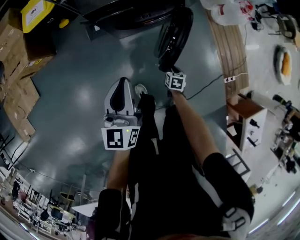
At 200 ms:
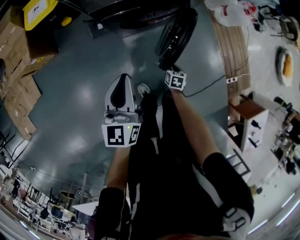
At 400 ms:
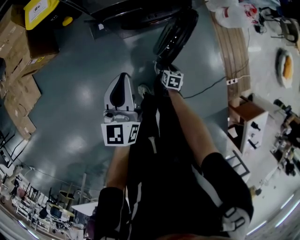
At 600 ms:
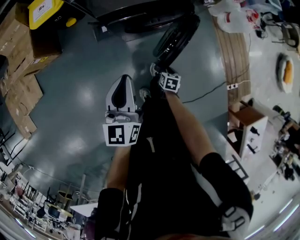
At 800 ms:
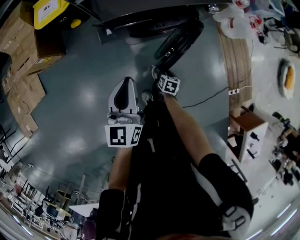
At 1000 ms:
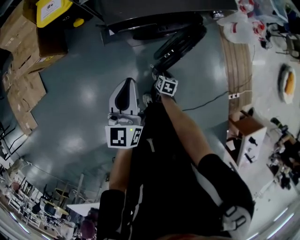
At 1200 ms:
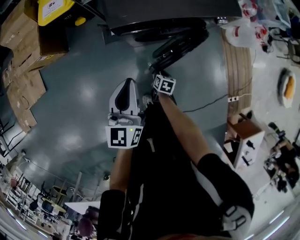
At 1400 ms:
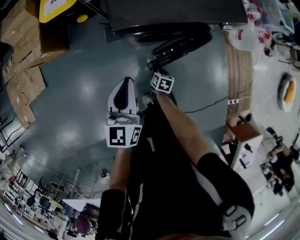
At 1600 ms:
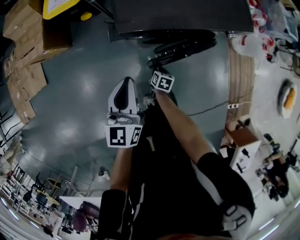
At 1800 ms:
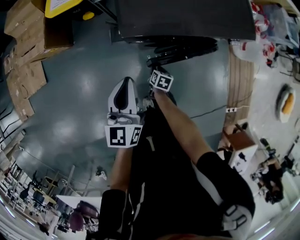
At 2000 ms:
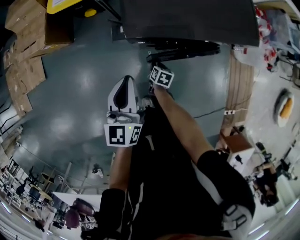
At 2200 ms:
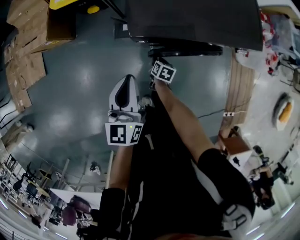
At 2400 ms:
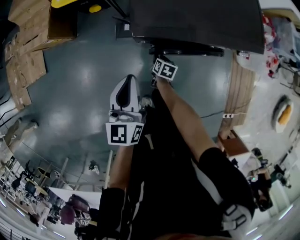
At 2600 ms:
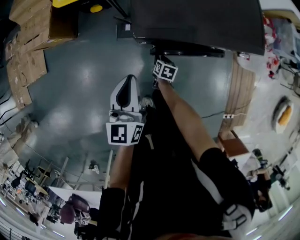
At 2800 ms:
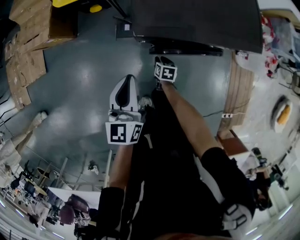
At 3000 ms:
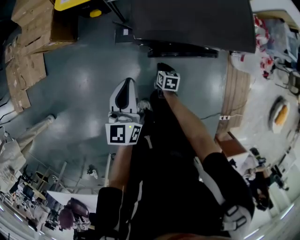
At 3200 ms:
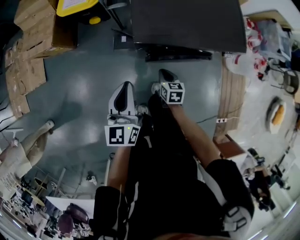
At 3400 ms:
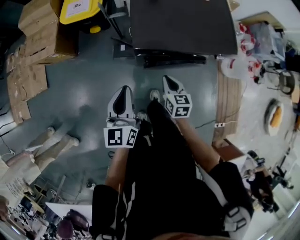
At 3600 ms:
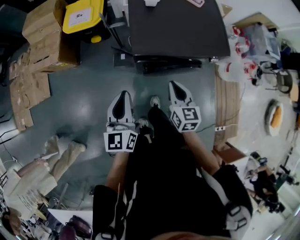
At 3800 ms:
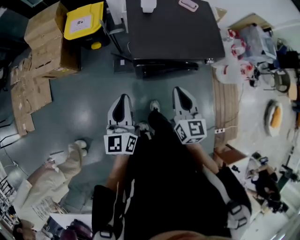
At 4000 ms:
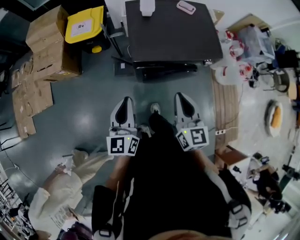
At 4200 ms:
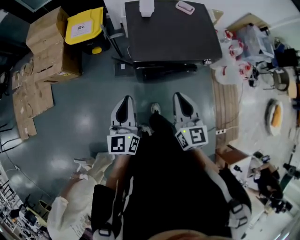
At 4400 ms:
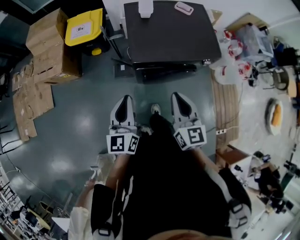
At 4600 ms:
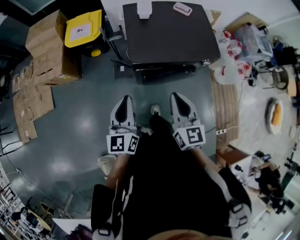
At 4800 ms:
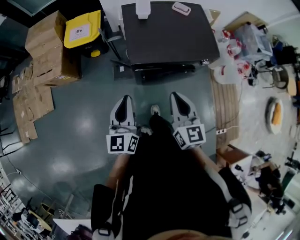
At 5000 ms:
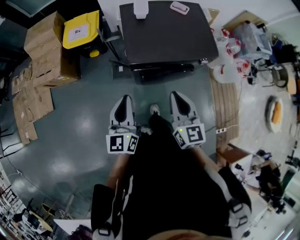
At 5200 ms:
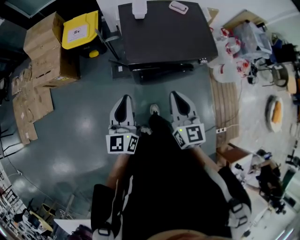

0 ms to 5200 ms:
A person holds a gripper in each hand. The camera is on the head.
0 ms to 1800 ms: The left gripper moves forward and to the left, roughly 20 cm, while the right gripper moves to the left and forward, approximately 30 cm.
1800 ms to 3400 ms: The right gripper moves upward, about 30 cm, rotates some 40 degrees, and closes its fingers, while the left gripper is displaced upward by some 5 cm.
3400 ms to 5200 ms: The right gripper is displaced upward by some 25 cm, and swivels approximately 30 degrees. Meanwhile the left gripper shifts about 10 cm upward.

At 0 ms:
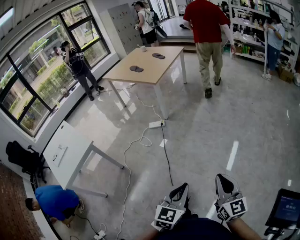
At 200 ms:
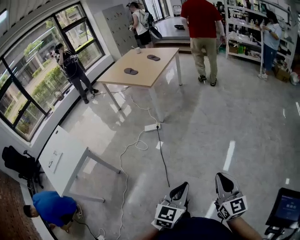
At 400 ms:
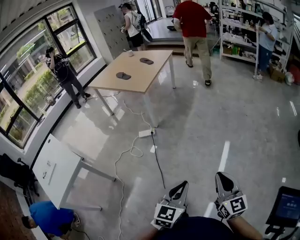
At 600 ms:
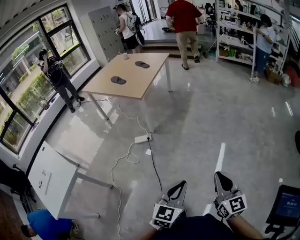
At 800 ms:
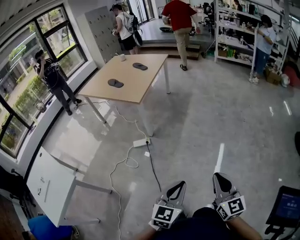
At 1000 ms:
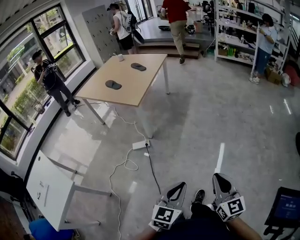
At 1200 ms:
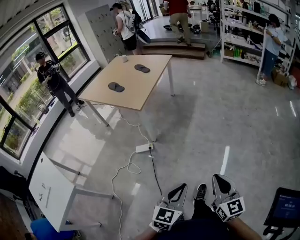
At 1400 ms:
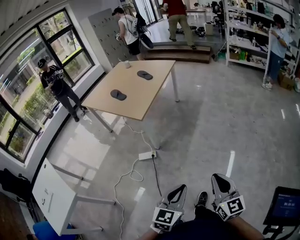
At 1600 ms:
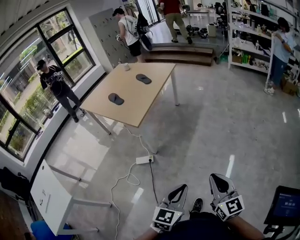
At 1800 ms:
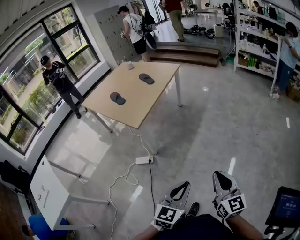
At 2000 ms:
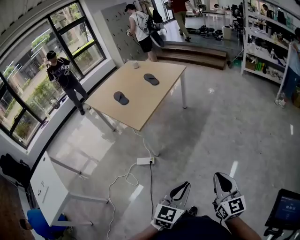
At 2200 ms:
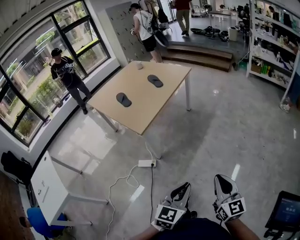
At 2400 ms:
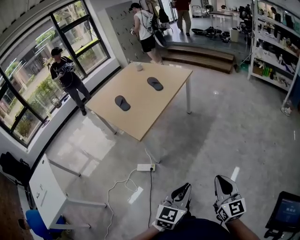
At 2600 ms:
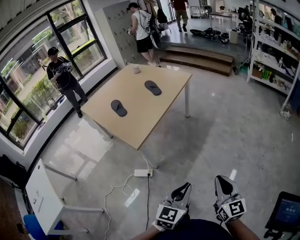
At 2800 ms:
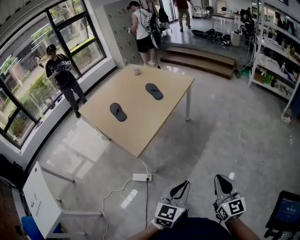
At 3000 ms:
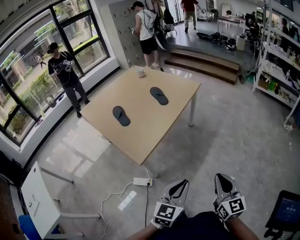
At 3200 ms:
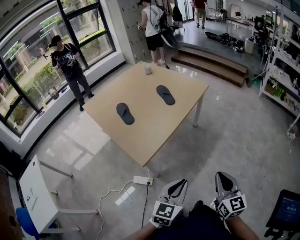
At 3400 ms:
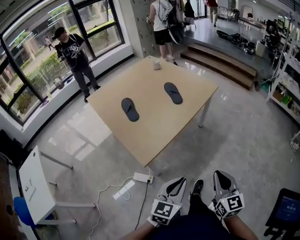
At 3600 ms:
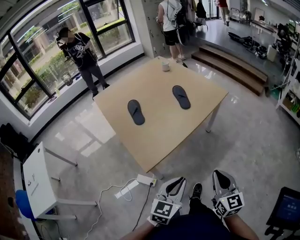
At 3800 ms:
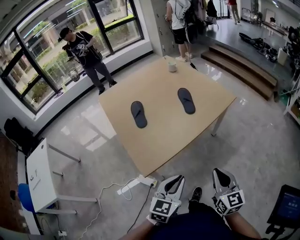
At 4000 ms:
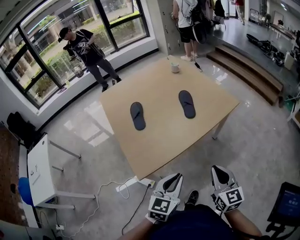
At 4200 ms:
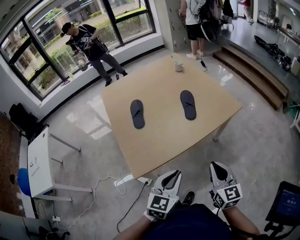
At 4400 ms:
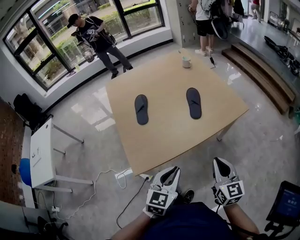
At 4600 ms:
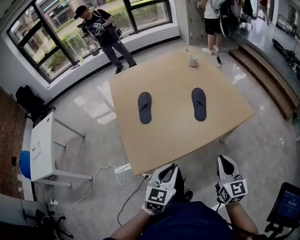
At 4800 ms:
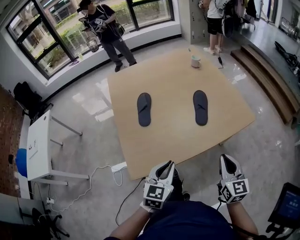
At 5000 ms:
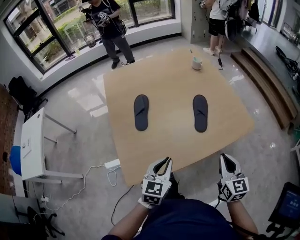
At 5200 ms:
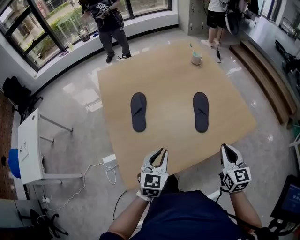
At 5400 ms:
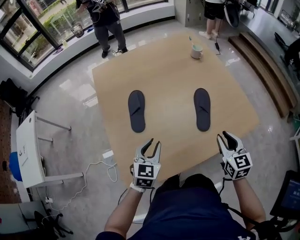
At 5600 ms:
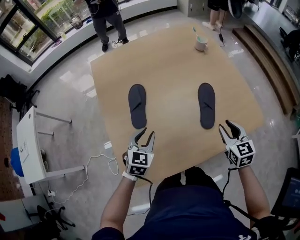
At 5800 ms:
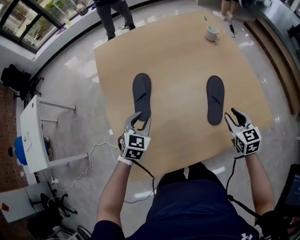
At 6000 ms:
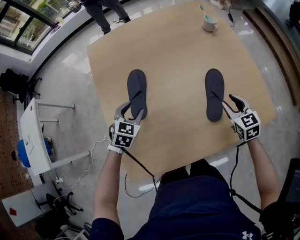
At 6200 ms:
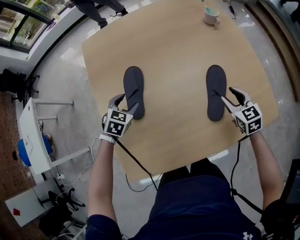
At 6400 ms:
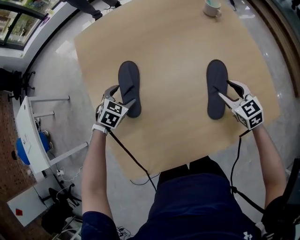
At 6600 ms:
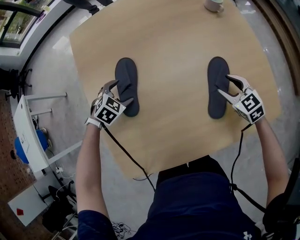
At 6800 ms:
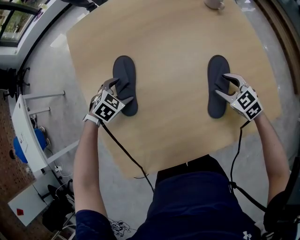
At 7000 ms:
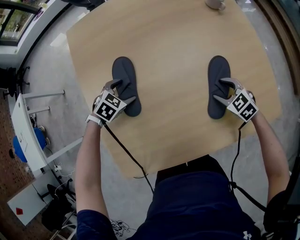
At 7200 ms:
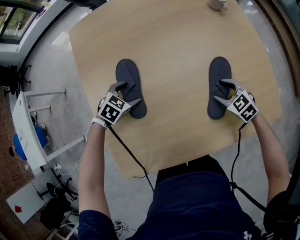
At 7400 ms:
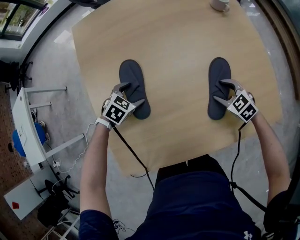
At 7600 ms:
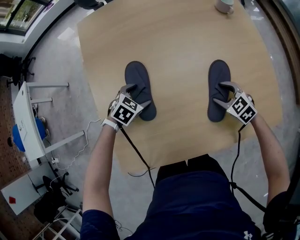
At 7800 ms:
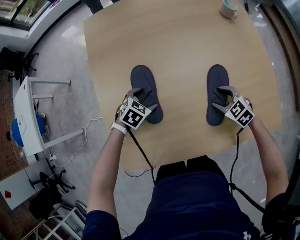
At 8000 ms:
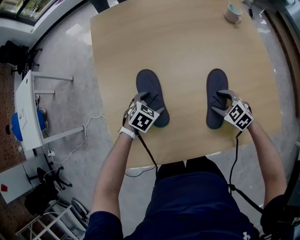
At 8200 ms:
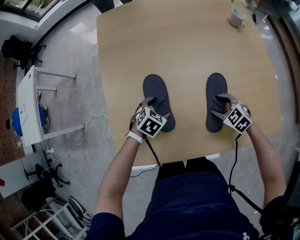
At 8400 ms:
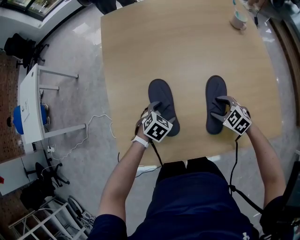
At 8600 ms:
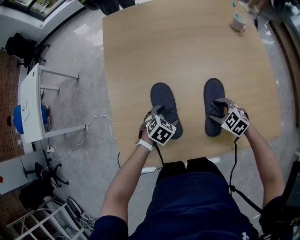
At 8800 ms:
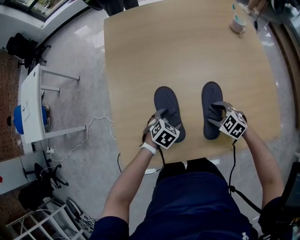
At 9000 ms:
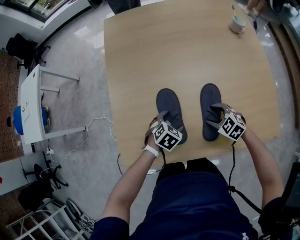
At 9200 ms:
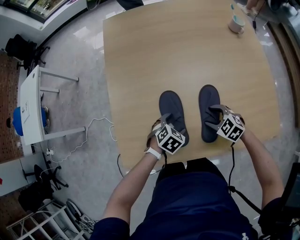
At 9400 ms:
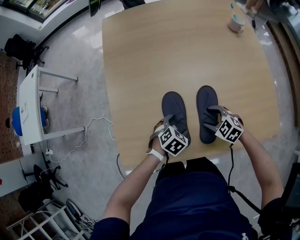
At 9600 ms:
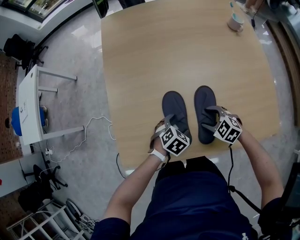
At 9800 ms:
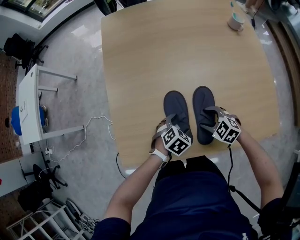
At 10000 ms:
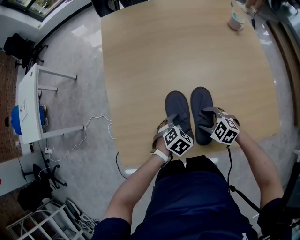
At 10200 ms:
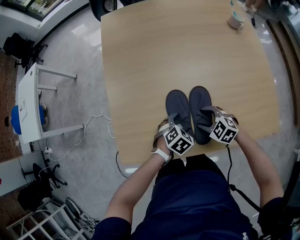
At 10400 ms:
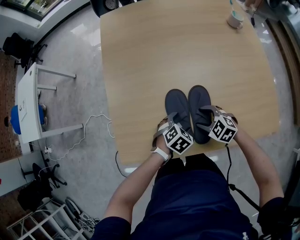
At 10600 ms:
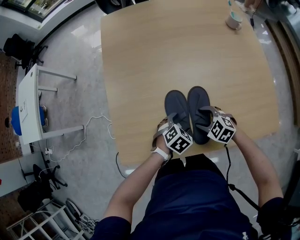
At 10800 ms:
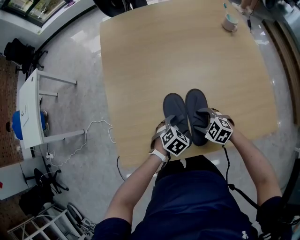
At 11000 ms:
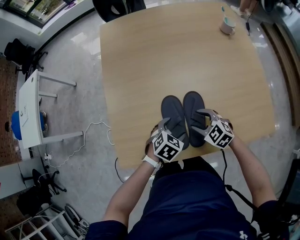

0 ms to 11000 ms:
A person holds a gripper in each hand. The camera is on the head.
0 ms to 1600 ms: Both grippers are carried forward, some 50 cm.
1600 ms to 3200 ms: Both grippers move forward, some 40 cm.
3200 ms to 4800 ms: The left gripper shifts by roughly 30 cm, and turns by roughly 40 degrees. The right gripper ends up about 40 cm from where it was, and rotates some 30 degrees.
4800 ms to 6200 ms: The left gripper goes approximately 40 cm forward, to the left and downward, points its fingers about 30 degrees further downward, and opens. The right gripper travels forward and downward by approximately 35 cm, swivels roughly 30 degrees, and opens its fingers.
6200 ms to 7800 ms: The left gripper goes roughly 10 cm downward, to the right and backward. Meanwhile the right gripper heads downward and to the left, covering roughly 10 cm, and changes its angle by roughly 40 degrees.
7800 ms to 9400 ms: The left gripper heads backward and to the right, covering about 15 cm; the right gripper travels to the left and backward by some 10 cm.
9400 ms to 11000 ms: The right gripper moves some 5 cm.

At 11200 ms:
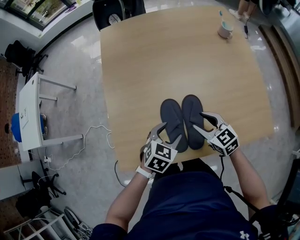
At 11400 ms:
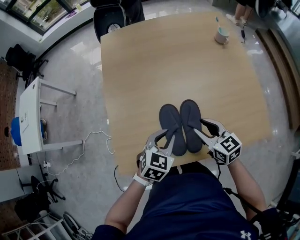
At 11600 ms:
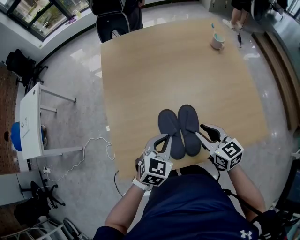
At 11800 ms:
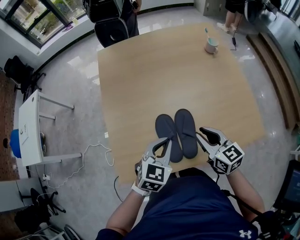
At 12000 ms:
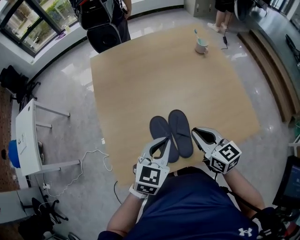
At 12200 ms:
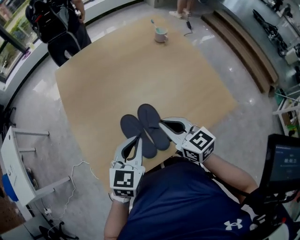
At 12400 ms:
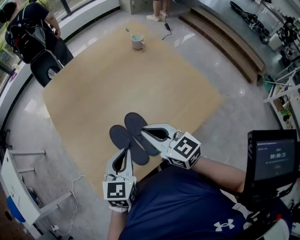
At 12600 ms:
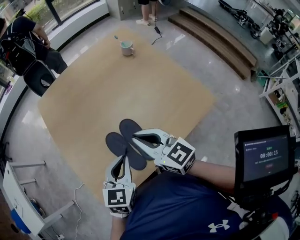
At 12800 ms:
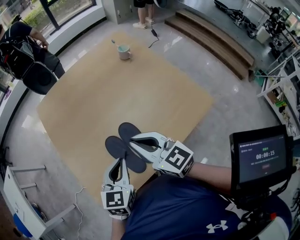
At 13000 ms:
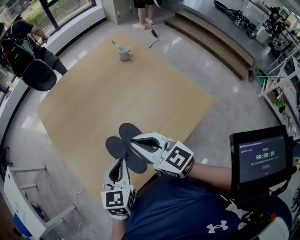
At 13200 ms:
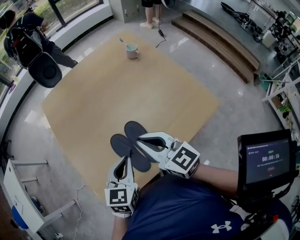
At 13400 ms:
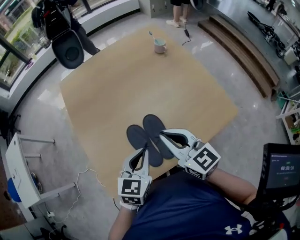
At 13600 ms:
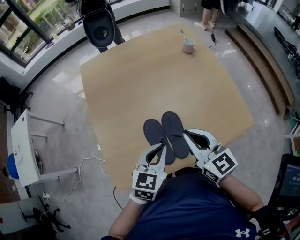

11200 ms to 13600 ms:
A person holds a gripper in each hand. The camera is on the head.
11200 ms to 12400 ms: Both grippers move upward, roughly 15 cm. The right gripper rotates approximately 30 degrees, and closes up; the left gripper closes its fingers.
12400 ms to 13600 ms: The right gripper moves approximately 5 cm.

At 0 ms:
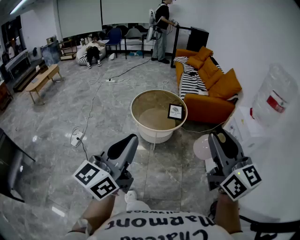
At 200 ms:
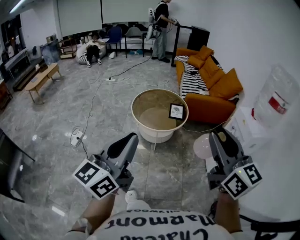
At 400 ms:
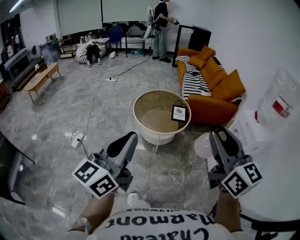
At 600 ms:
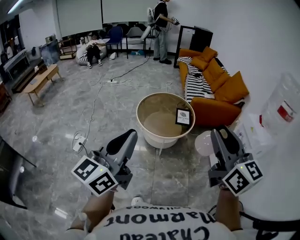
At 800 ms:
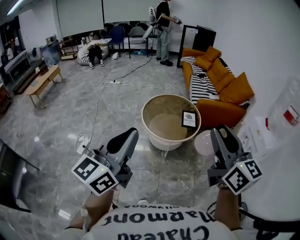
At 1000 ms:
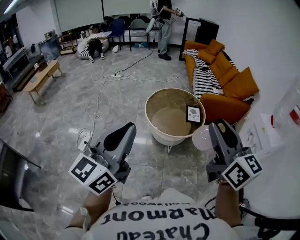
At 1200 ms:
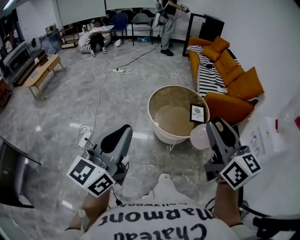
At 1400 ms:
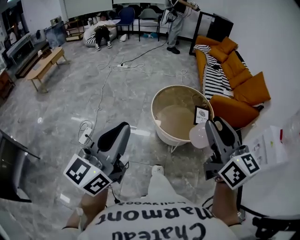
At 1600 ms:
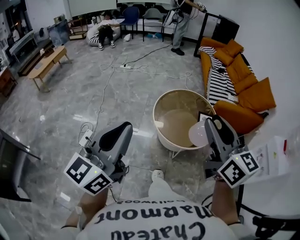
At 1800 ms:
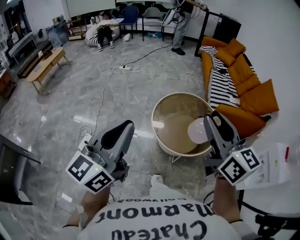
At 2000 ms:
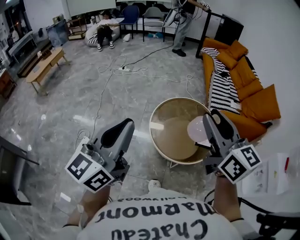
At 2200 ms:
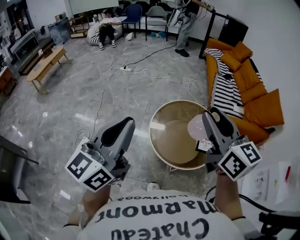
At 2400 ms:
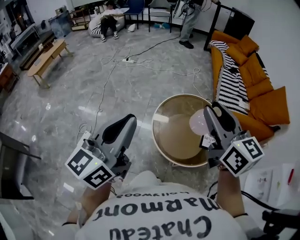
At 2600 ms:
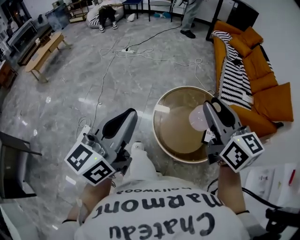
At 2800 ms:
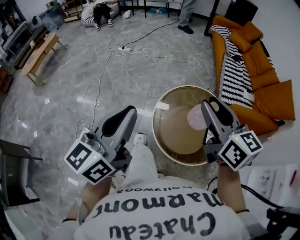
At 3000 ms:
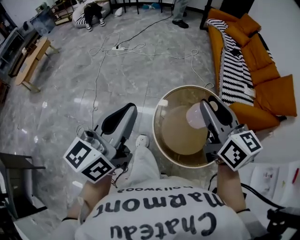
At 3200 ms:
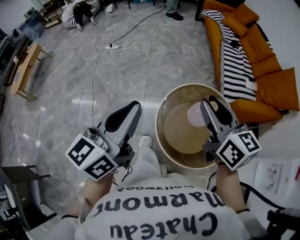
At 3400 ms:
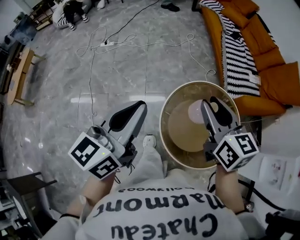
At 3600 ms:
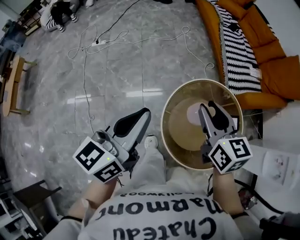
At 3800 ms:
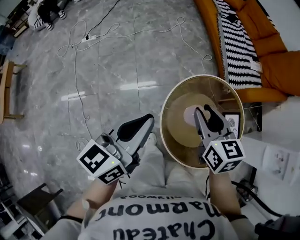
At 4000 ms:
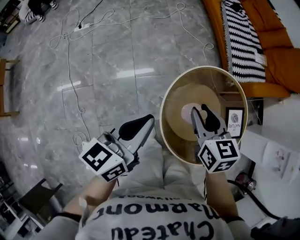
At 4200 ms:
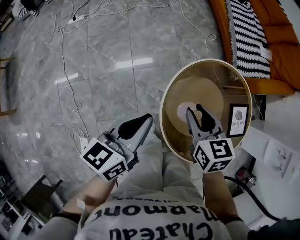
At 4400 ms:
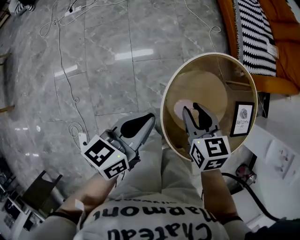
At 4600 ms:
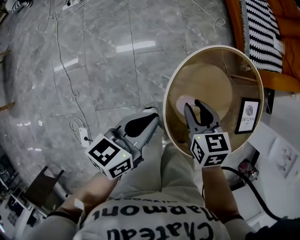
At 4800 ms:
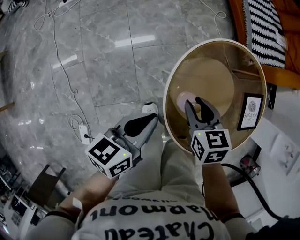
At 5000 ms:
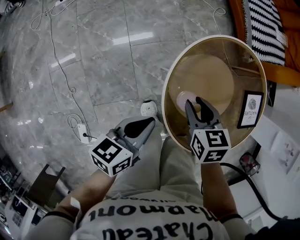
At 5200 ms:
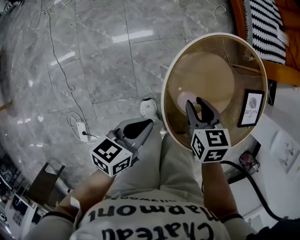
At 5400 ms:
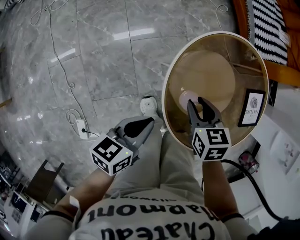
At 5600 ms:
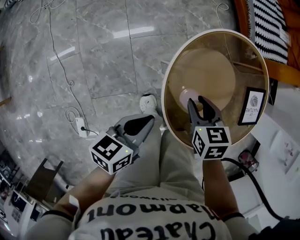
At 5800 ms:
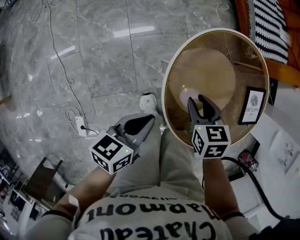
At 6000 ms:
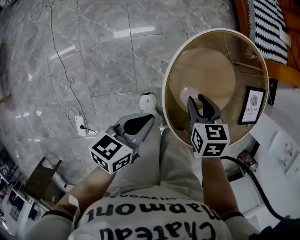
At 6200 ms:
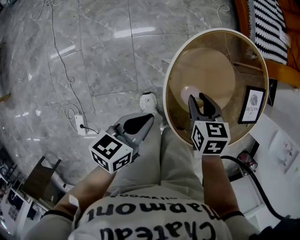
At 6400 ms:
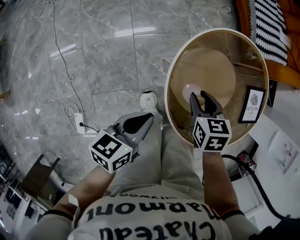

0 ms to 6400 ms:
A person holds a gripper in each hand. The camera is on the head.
0 ms to 1600 ms: Both grippers travel together forward and to the left, roughly 40 cm.
1600 ms to 3200 ms: The two grippers travel together, forward, about 40 cm.
3200 ms to 4800 ms: The grippers both shift downward by about 40 cm. The right gripper tips its fingers downward by about 40 degrees. The left gripper rotates some 40 degrees.
4800 ms to 6400 ms: The left gripper heads backward, covering roughly 5 cm. Meanwhile the right gripper ends up some 5 cm from where it was.
